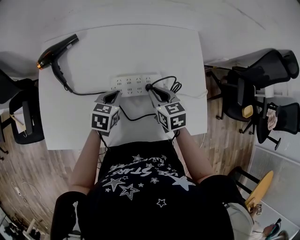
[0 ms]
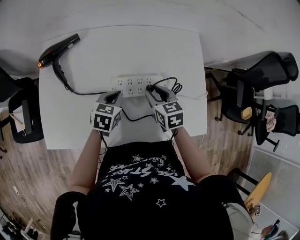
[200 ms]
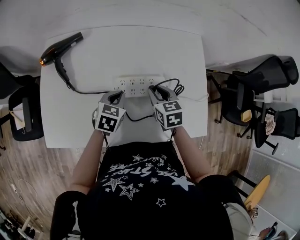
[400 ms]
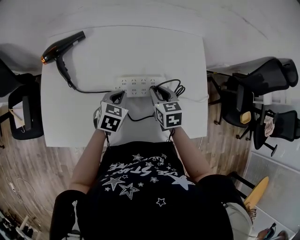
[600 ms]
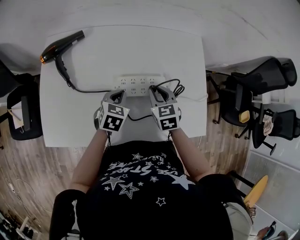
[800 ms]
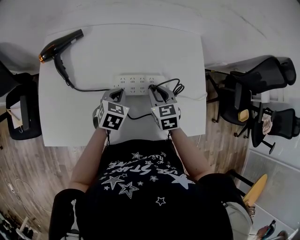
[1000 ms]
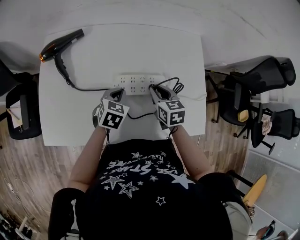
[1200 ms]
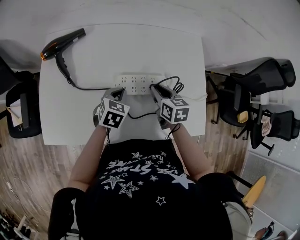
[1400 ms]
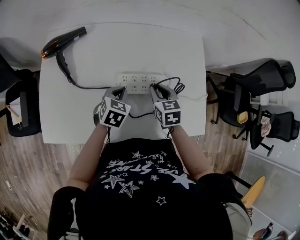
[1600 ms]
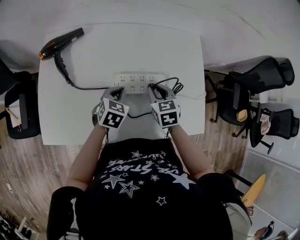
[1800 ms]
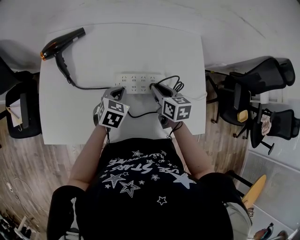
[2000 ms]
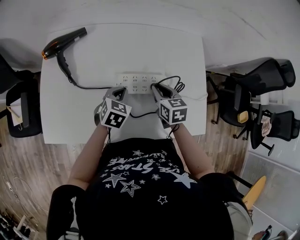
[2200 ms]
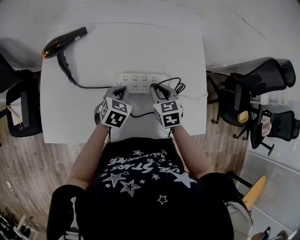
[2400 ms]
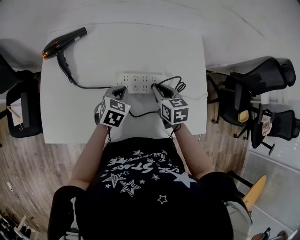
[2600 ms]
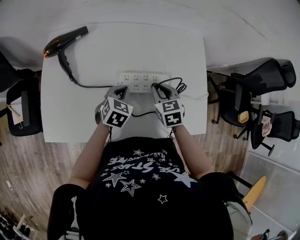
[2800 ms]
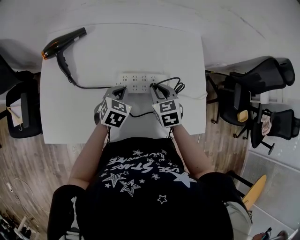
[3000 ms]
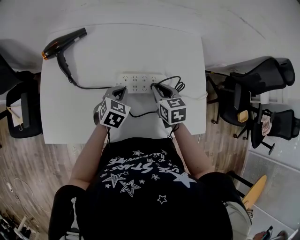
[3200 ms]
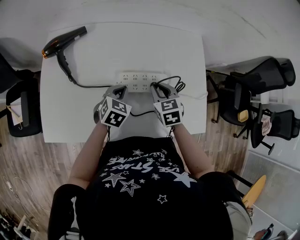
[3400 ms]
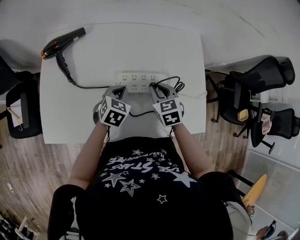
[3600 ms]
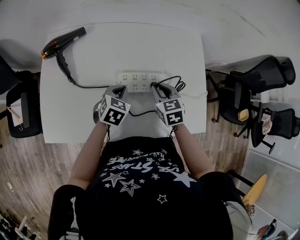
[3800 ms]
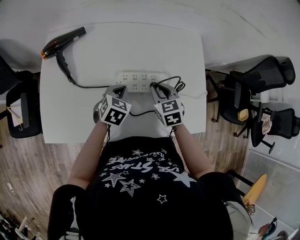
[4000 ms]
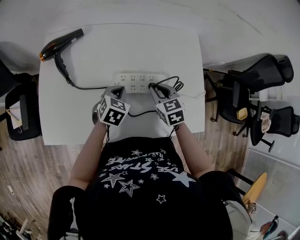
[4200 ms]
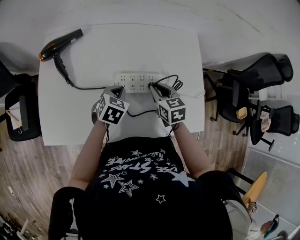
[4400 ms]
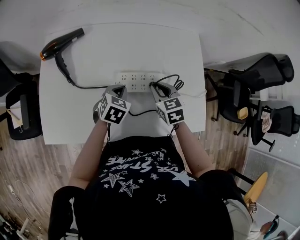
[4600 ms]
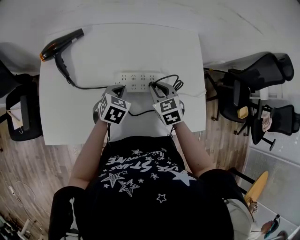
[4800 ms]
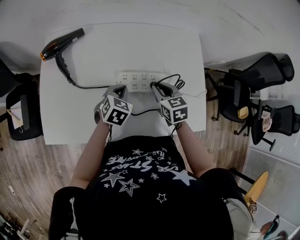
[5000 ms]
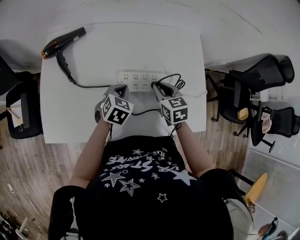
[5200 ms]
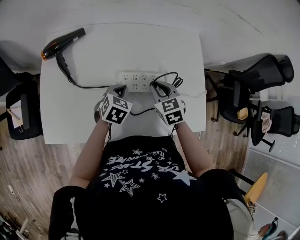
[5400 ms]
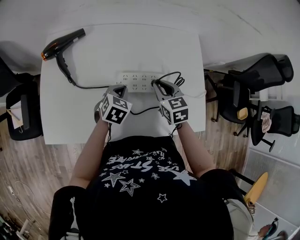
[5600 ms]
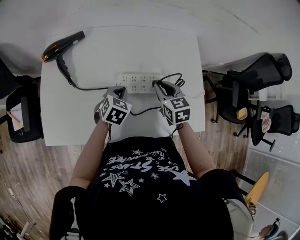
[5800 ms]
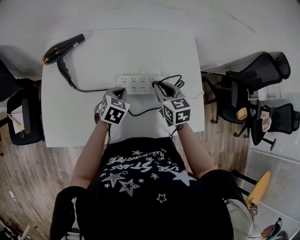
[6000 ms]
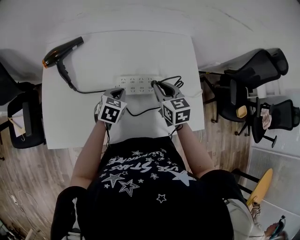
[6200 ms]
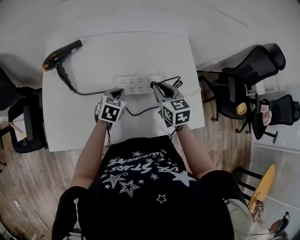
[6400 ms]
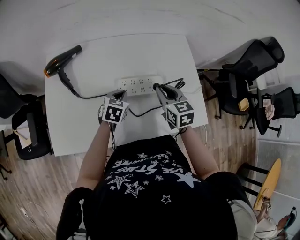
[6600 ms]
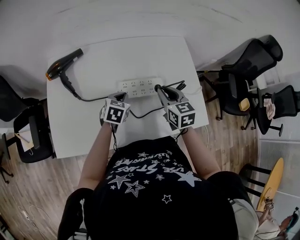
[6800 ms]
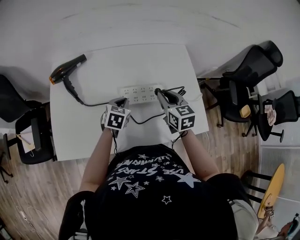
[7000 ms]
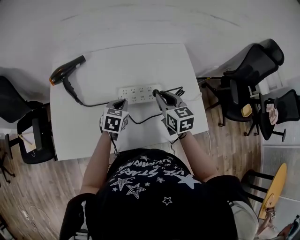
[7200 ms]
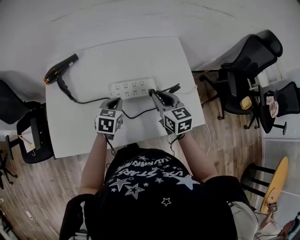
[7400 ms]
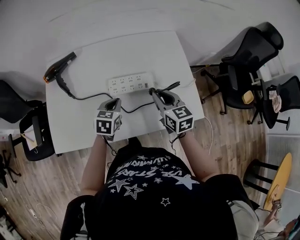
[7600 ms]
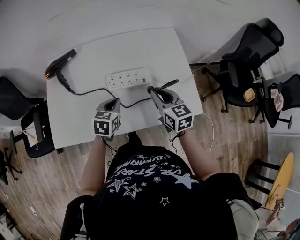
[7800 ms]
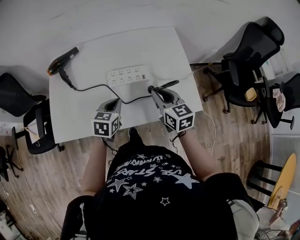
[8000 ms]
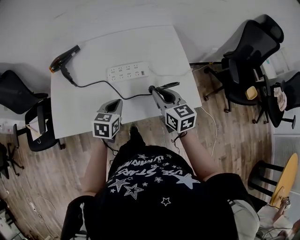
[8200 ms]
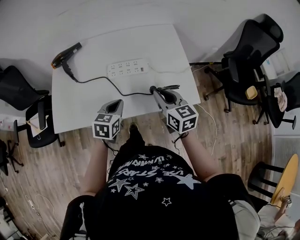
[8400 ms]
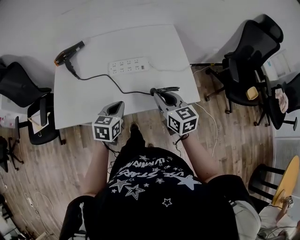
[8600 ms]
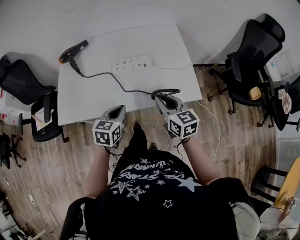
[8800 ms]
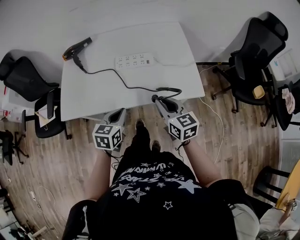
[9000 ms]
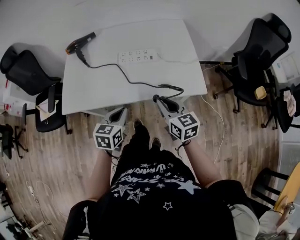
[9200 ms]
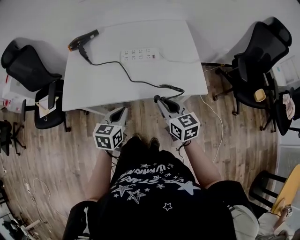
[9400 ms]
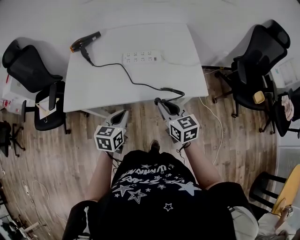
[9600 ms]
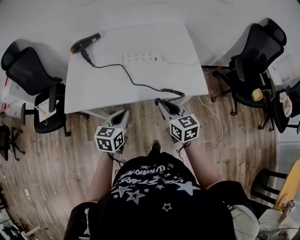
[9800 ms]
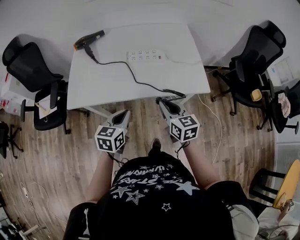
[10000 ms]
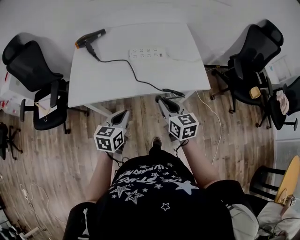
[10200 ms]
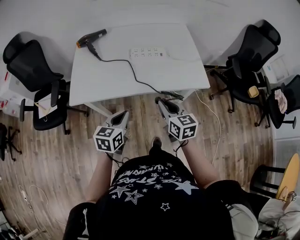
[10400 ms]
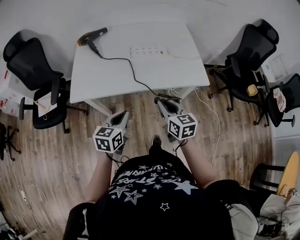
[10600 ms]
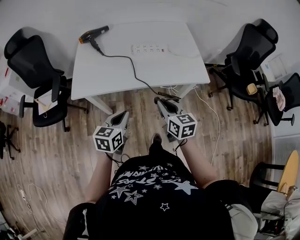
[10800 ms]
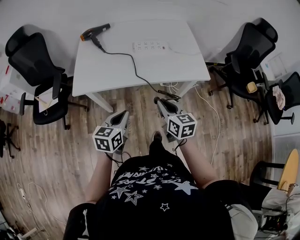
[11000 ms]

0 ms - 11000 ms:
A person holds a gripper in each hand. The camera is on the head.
0 ms - 4800 ms: The grippers move only a little.
4800 ms - 6200 ms: The right gripper travels upward by some 5 cm.
6200 ms - 7800 ms: The left gripper is displaced backward and upward by about 10 cm, while the right gripper travels backward and to the right by roughly 10 cm.
7800 ms - 9400 ms: The two grippers go roughly 20 cm backward.
9400 ms - 11000 ms: The two grippers go some 15 cm backward and to the left.

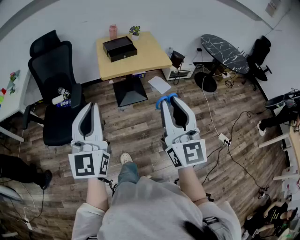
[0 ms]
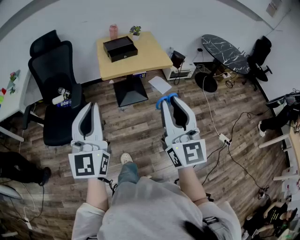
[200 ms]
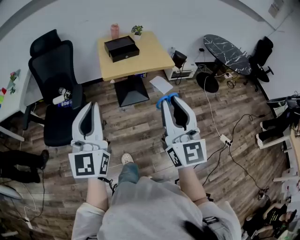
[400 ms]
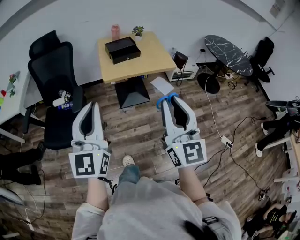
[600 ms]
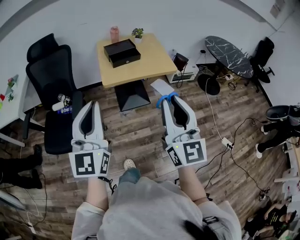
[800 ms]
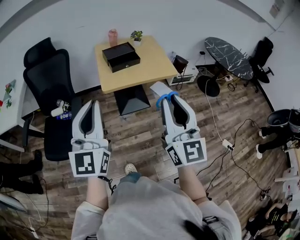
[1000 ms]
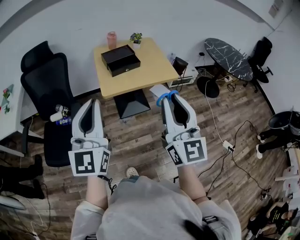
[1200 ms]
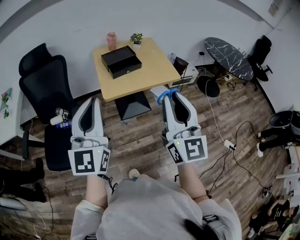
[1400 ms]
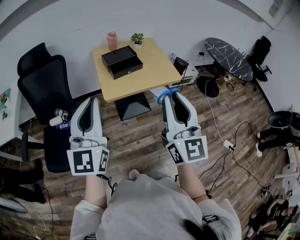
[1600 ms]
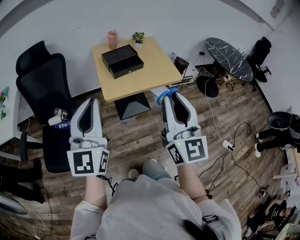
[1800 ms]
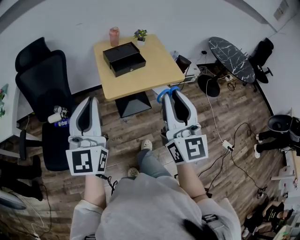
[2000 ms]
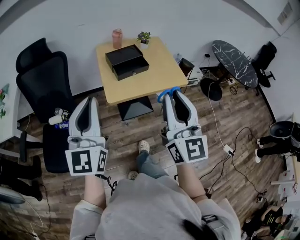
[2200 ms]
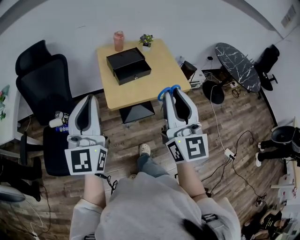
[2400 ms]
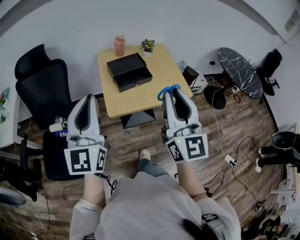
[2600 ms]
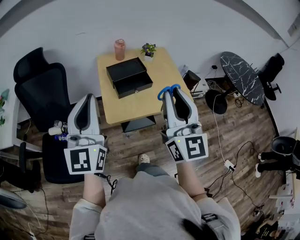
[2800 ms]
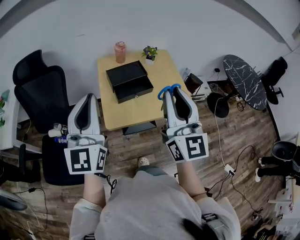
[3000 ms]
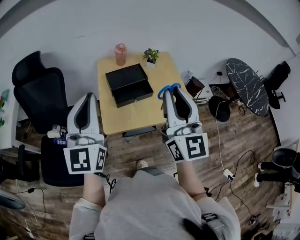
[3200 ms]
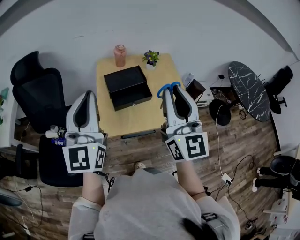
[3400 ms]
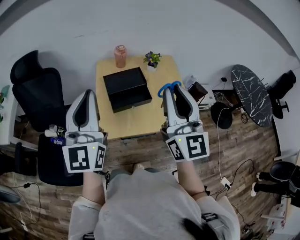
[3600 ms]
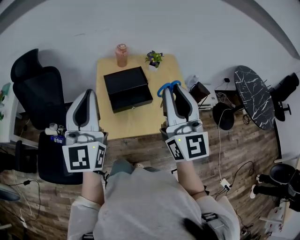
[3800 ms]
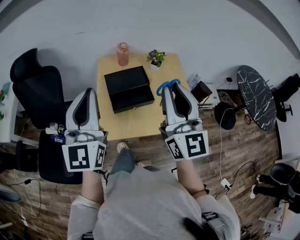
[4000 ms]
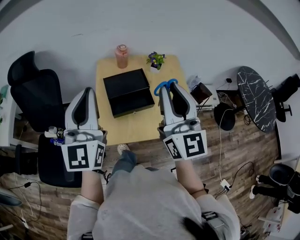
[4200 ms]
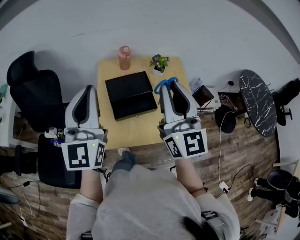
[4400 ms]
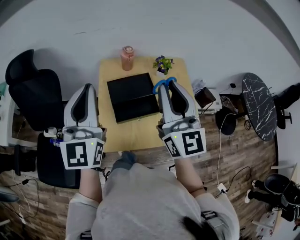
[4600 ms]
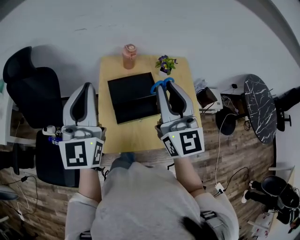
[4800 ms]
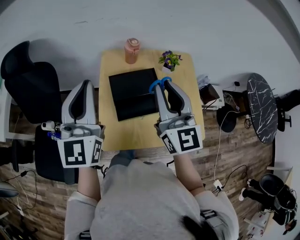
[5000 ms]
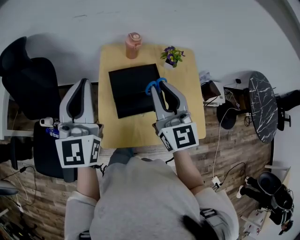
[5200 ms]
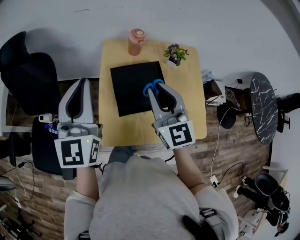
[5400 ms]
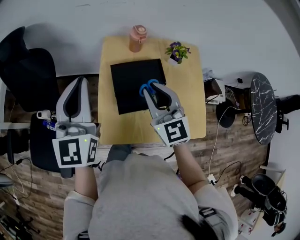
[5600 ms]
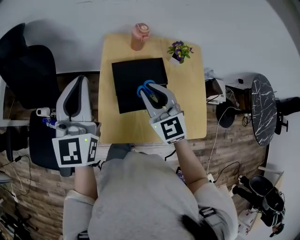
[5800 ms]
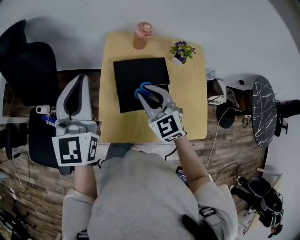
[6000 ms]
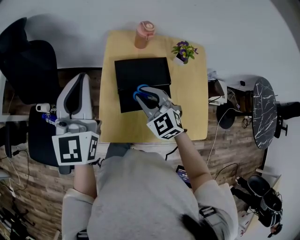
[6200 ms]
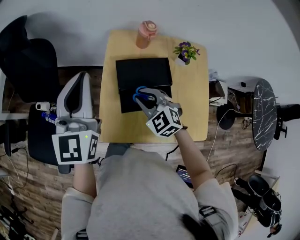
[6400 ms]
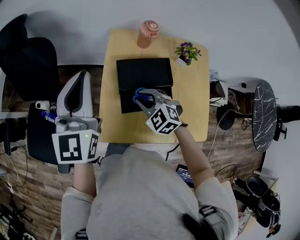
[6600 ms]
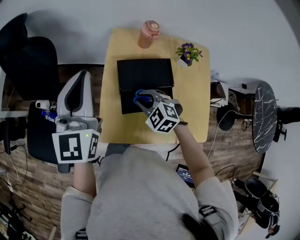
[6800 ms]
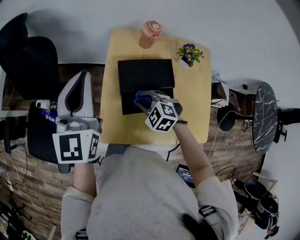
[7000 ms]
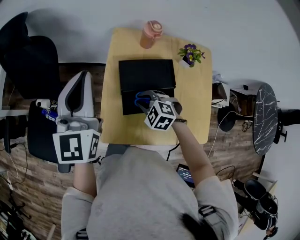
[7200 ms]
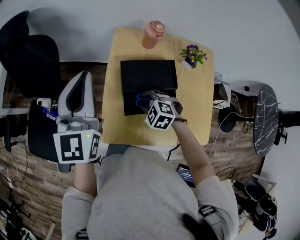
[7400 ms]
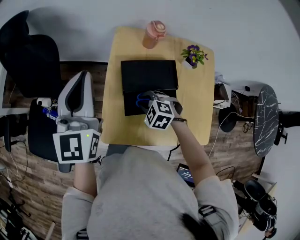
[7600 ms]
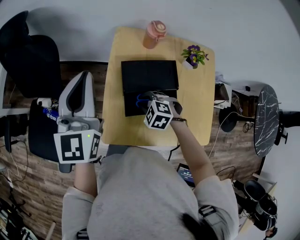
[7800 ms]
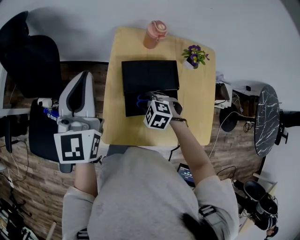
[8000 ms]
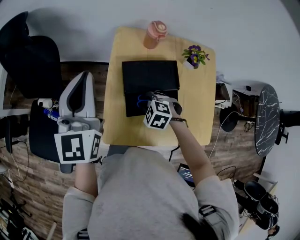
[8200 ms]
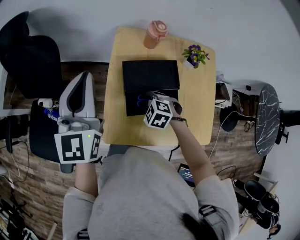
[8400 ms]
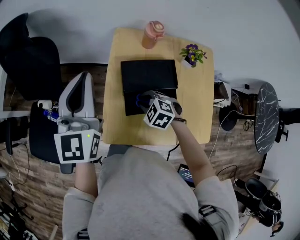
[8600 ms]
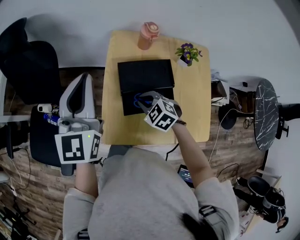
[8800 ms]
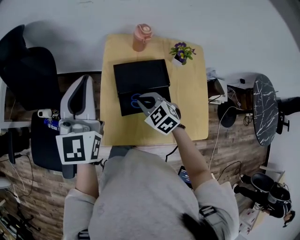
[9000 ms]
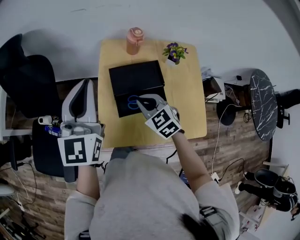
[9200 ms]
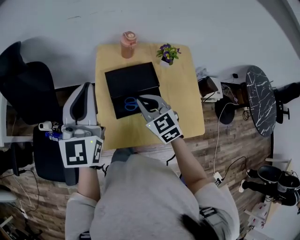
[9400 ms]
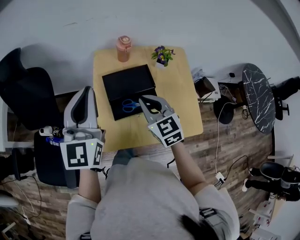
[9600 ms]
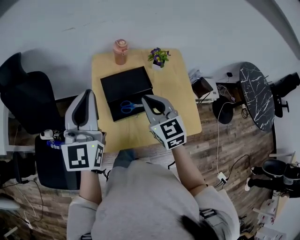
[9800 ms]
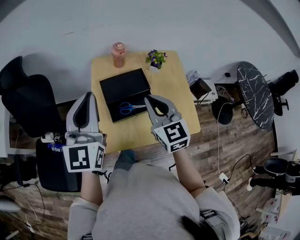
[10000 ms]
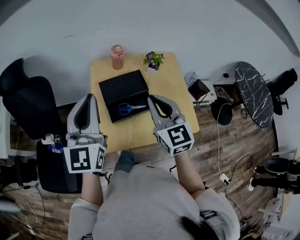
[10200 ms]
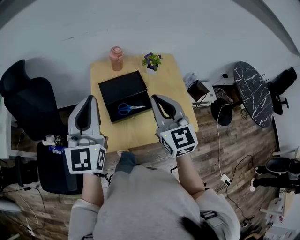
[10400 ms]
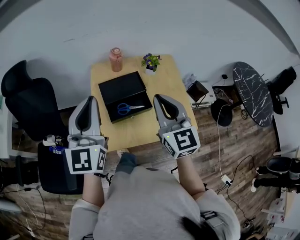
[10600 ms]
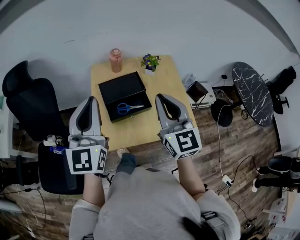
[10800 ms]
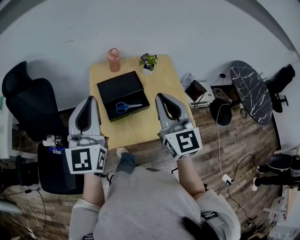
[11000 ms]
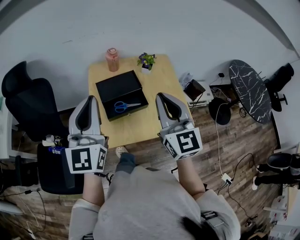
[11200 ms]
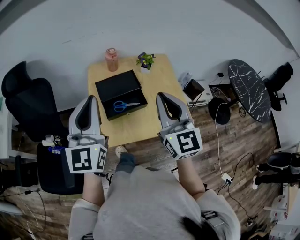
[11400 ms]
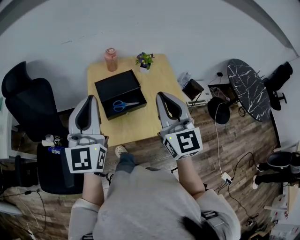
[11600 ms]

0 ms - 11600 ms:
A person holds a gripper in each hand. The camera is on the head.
0 ms - 1400 ms: Both grippers move forward, roughly 20 cm.
1400 ms - 2800 ms: Both grippers travel together forward, approximately 20 cm.
2800 ms - 4400 ms: The two grippers go about 20 cm forward.
4400 ms - 5800 ms: The right gripper goes roughly 25 cm downward, forward and to the left, and tips its fingers downward by approximately 30 degrees; the left gripper heads forward, downward and to the left, covering roughly 15 cm.
5800 ms - 7200 ms: The right gripper goes roughly 20 cm downward, and tips its fingers downward by roughly 40 degrees.
7200 ms - 8800 ms: The grippers move only a little.
8800 ms - 10200 ms: The left gripper goes some 15 cm backward, to the right and upward. The right gripper travels upward by about 25 cm, and points its fingers some 50 degrees further upward.
10200 ms - 11600 ms: The left gripper goes approximately 5 cm backward. Meanwhile the right gripper heads backward and upward, covering approximately 10 cm.

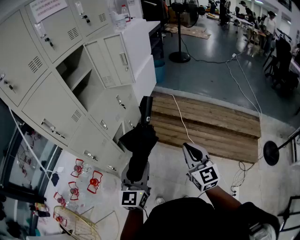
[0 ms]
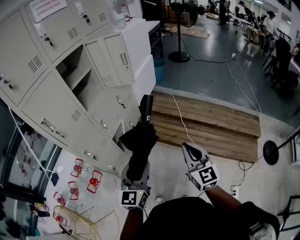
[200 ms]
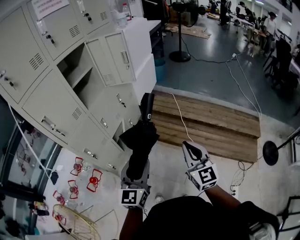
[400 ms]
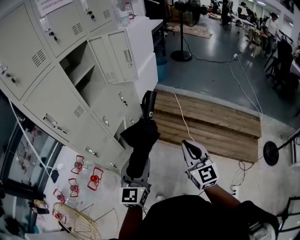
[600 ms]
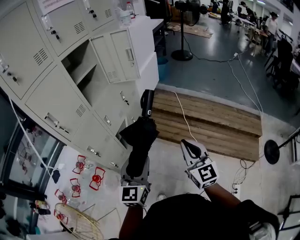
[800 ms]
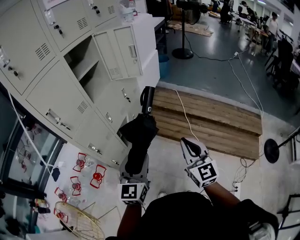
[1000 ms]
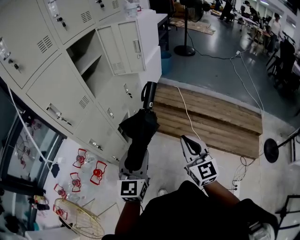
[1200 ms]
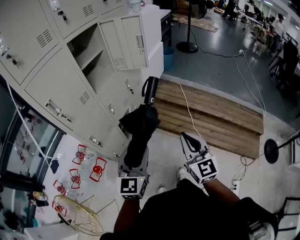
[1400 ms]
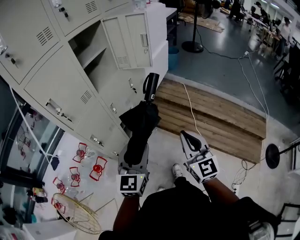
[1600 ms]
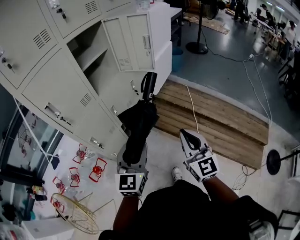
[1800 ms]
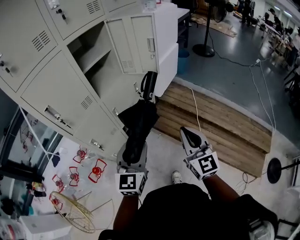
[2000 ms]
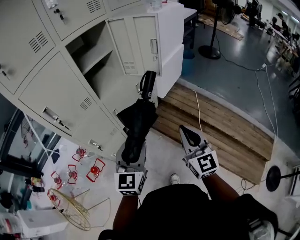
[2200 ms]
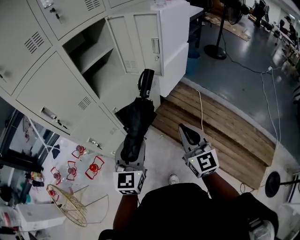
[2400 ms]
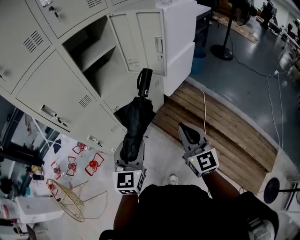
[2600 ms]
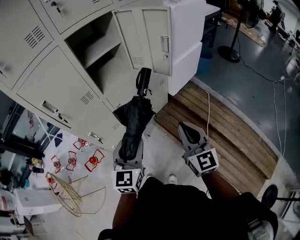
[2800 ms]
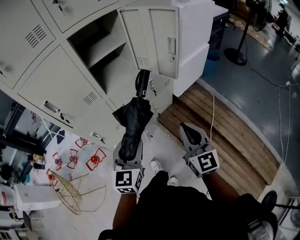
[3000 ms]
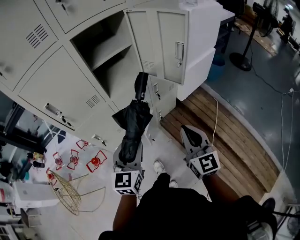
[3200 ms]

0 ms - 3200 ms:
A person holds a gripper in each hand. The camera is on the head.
0 ms - 1600 ms: The two grippers go roughly 10 cm to the left.
1600 ms - 3200 ms: Both grippers travel together forward, approximately 25 cm. The right gripper swivels roughly 20 degrees. The left gripper changes its angle by some 30 degrees.
